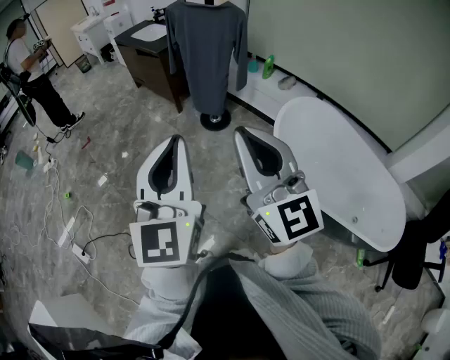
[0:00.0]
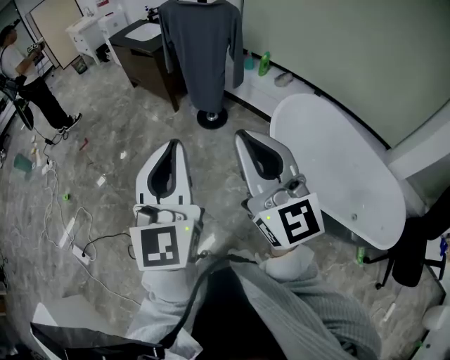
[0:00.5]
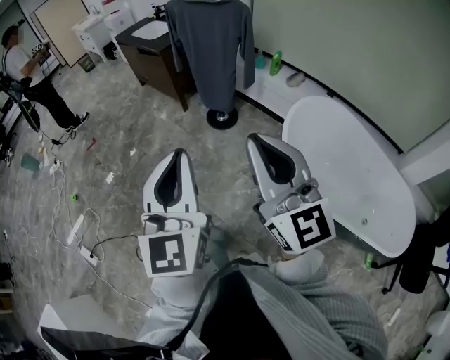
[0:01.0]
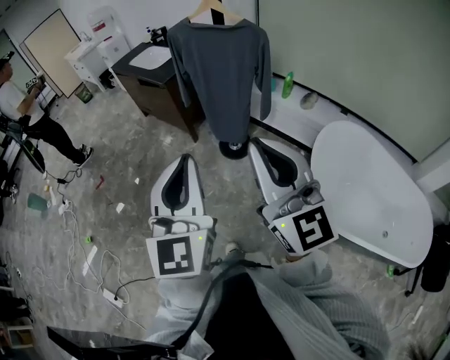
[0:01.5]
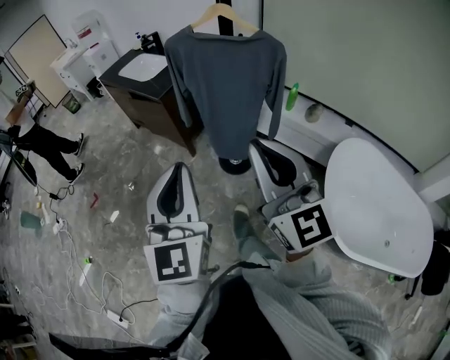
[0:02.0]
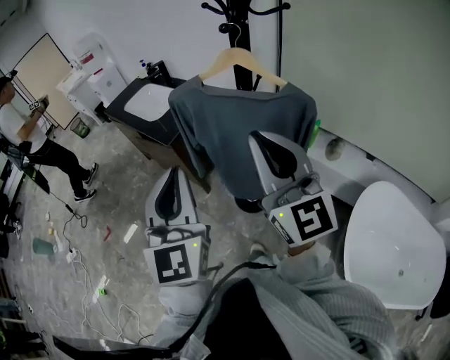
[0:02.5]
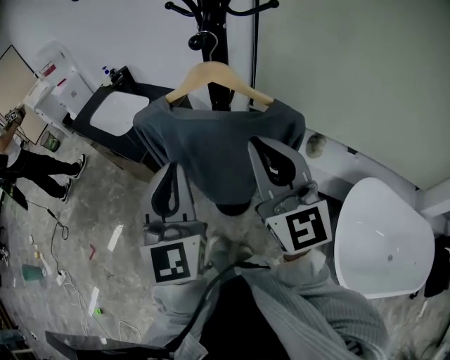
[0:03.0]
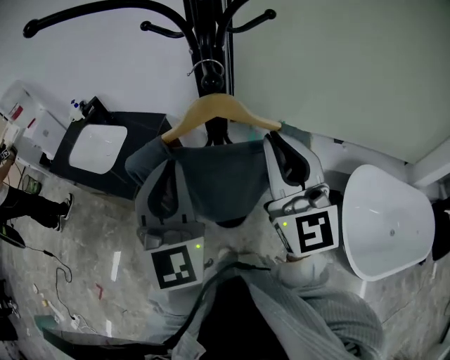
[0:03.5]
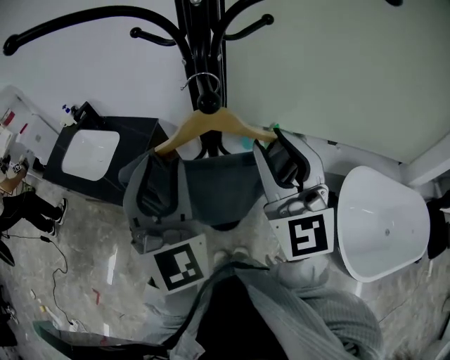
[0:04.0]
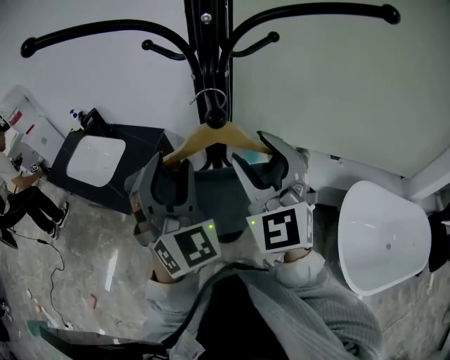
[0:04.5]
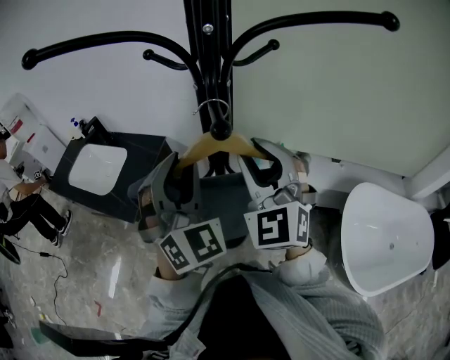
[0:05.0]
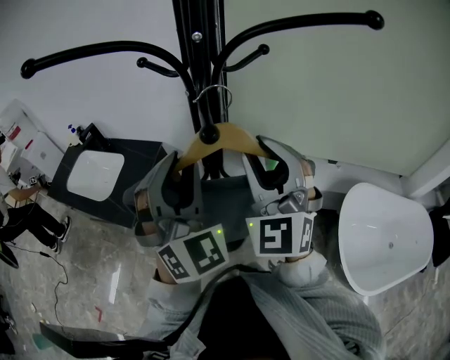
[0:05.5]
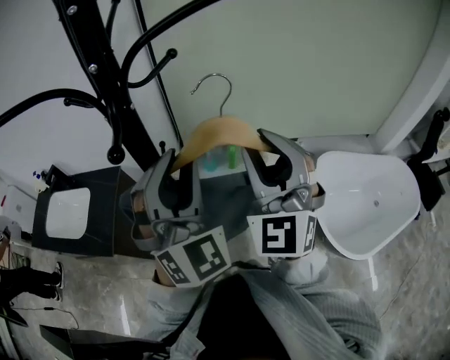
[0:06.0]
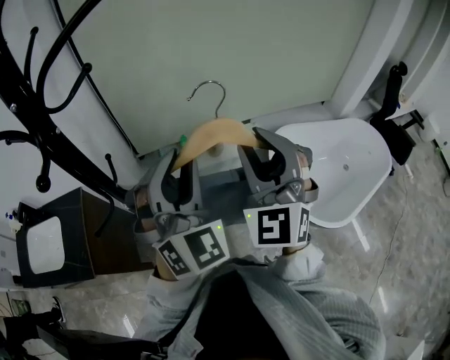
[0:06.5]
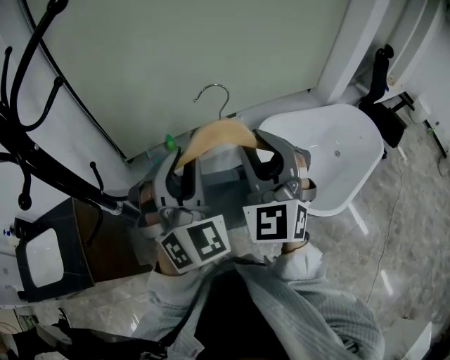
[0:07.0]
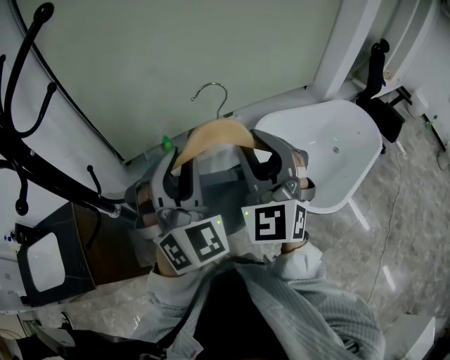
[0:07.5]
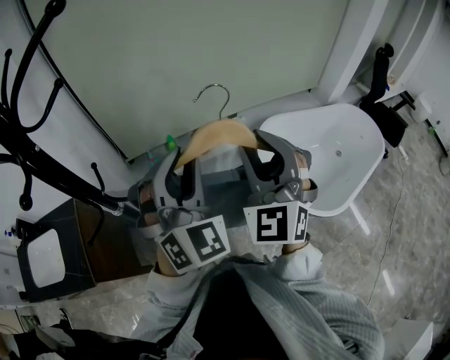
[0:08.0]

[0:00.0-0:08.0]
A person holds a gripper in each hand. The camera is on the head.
0:00.0 to 0:02.0: The two grippers travel together, forward, about 50 cm.
0:02.0 to 0:04.0: The two grippers travel together, forward, about 50 cm. The left gripper swivels some 30 degrees, and opens up; the right gripper rotates some 30 degrees, and opens.
0:04.0 to 0:06.0: The two grippers go roughly 15 cm to the right. The right gripper turns by some 30 degrees, and opens, then closes again. Meanwhile the left gripper changes its angle by roughly 20 degrees.
0:06.0 to 0:08.0: The grippers both shift to the right by about 15 cm. The right gripper changes its angle by about 20 degrees, while the left gripper swivels roughly 20 degrees.

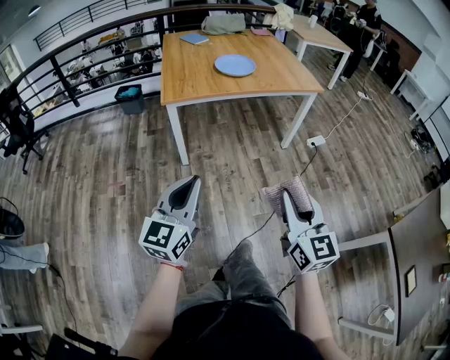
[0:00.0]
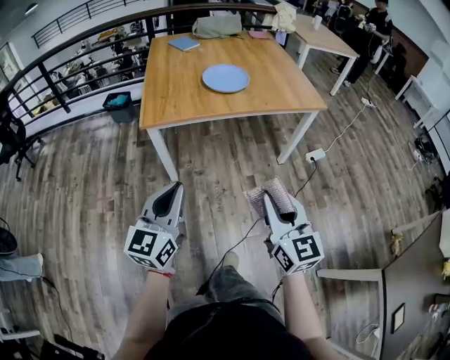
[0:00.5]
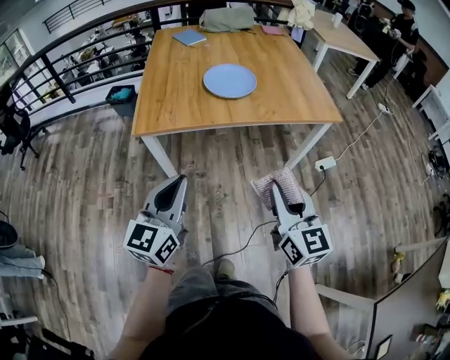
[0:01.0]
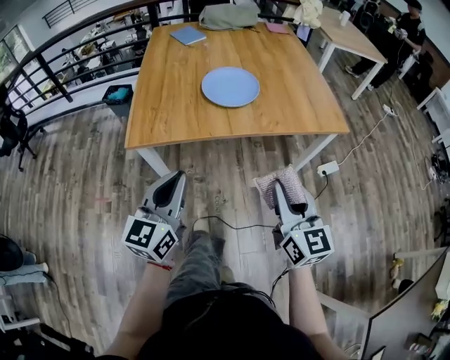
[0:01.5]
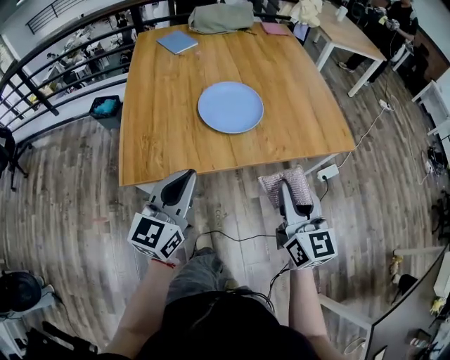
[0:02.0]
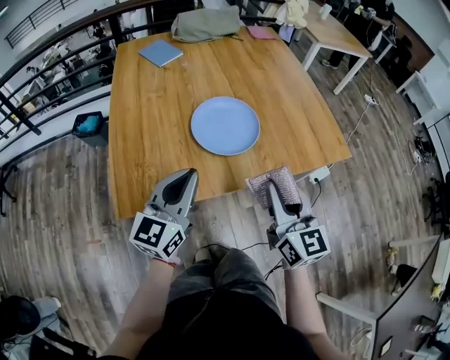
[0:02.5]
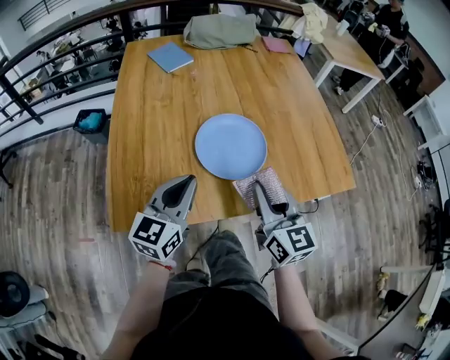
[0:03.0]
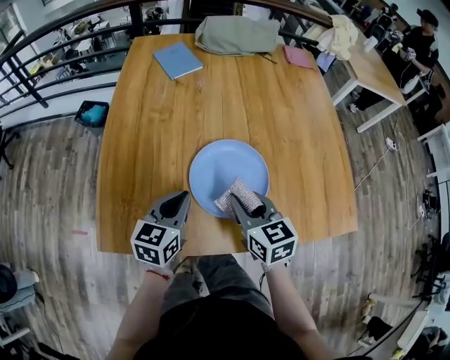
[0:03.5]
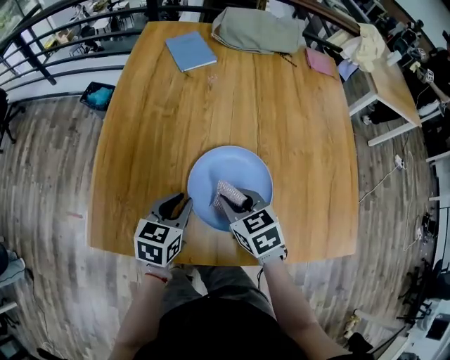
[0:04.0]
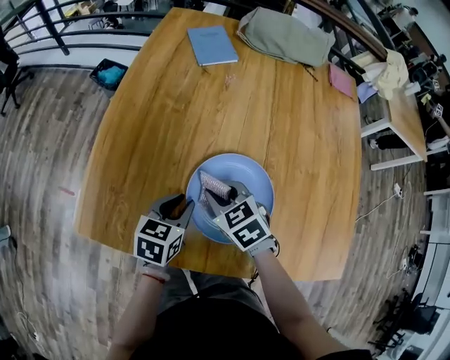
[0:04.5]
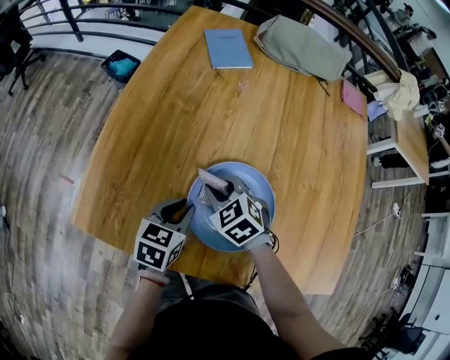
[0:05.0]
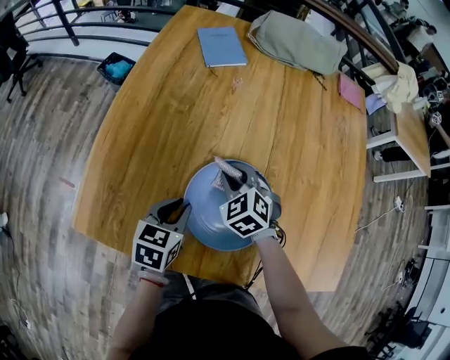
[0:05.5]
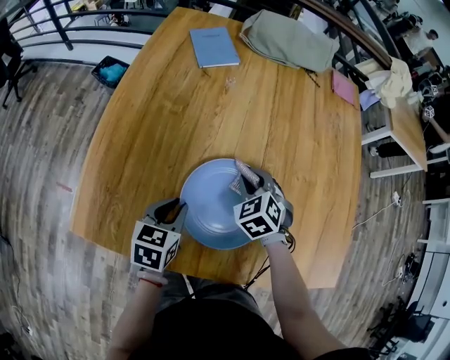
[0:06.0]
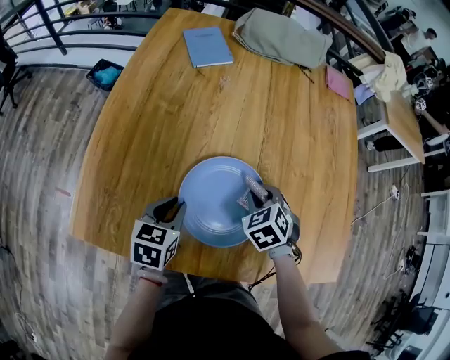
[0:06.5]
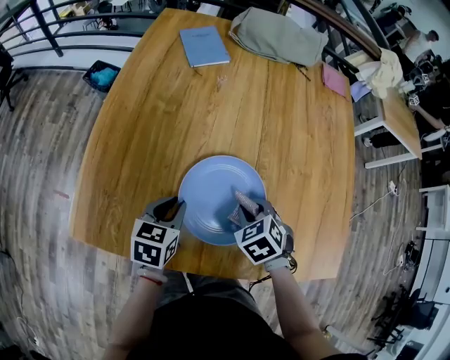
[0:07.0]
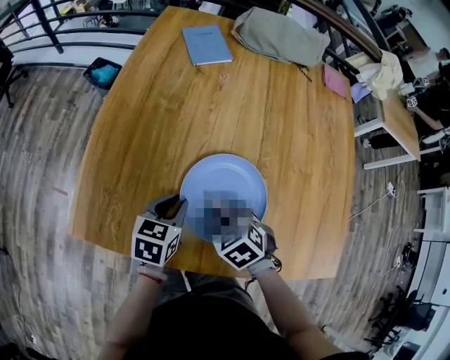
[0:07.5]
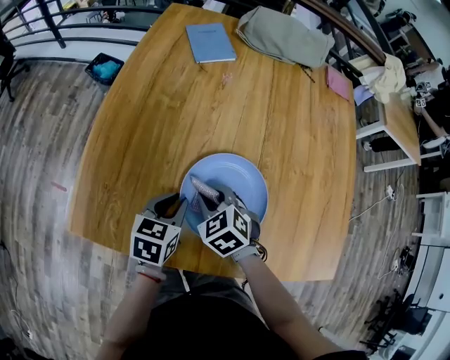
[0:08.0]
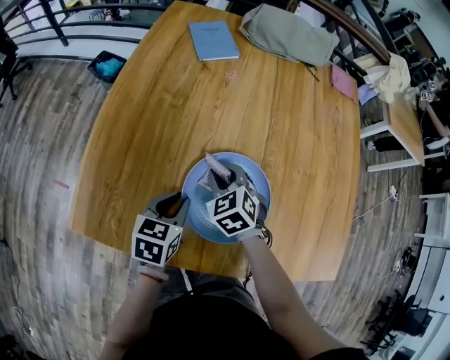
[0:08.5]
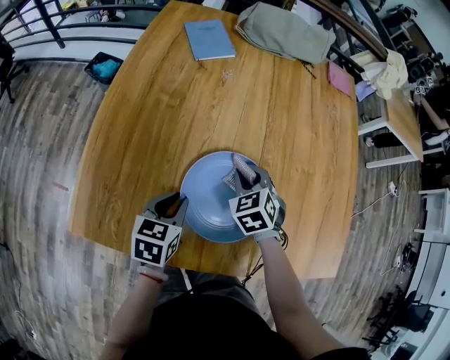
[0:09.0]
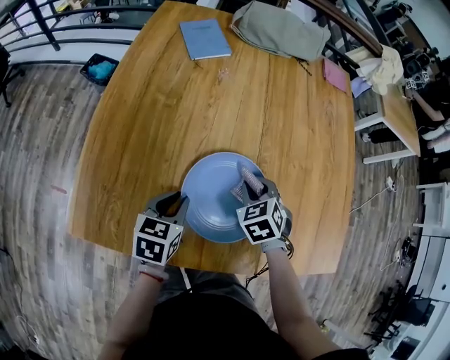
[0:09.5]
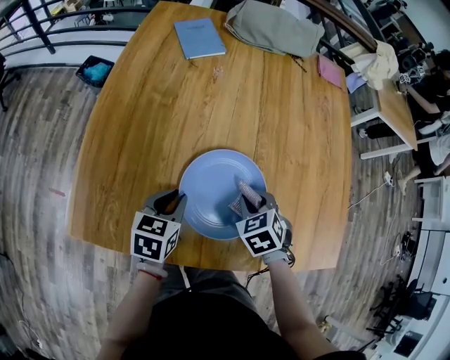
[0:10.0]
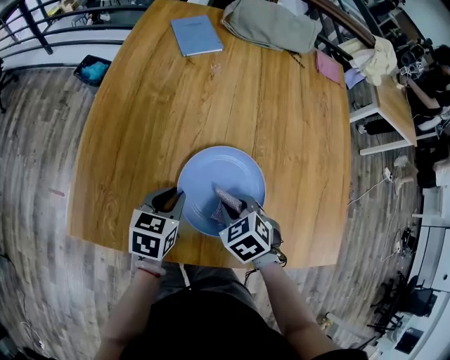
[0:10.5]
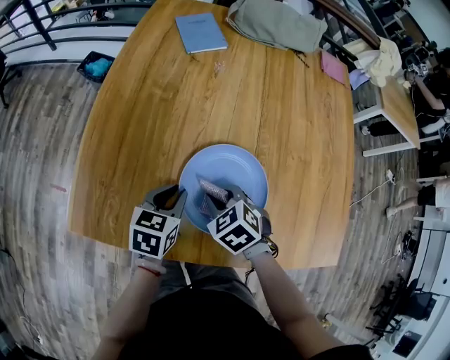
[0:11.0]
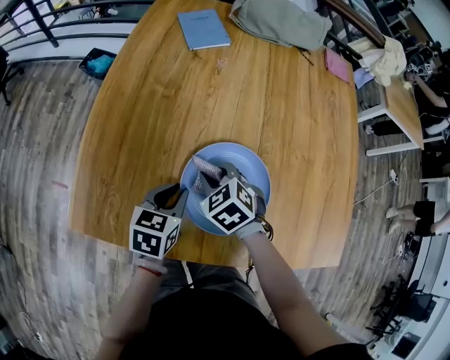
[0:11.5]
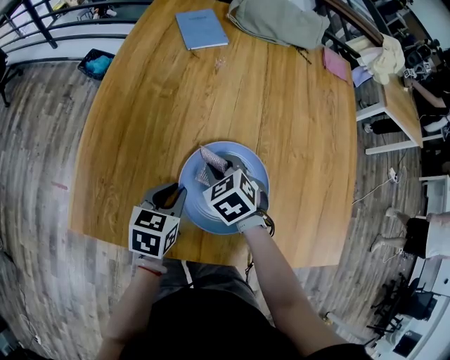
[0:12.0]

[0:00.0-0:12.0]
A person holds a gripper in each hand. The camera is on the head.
0:00.0 to 0:02.0: The two grippers travel together, forward, about 50 cm.
0:02.0 to 0:04.0: The left gripper changes place by some 30 cm, and tilts its fingers approximately 30 degrees downward; the right gripper moves approximately 35 cm, and points its fingers approximately 40 degrees further downward.
0:04.0 to 0:06.0: The right gripper goes about 10 cm forward and to the right, and rotates approximately 30 degrees.
0:06.0 to 0:08.0: The right gripper heads to the left and backward, covering roughly 15 cm.
0:08.0 to 0:10.0: The right gripper shifts some 15 cm to the right, and changes its angle by some 20 degrees.
0:10.0 to 0:12.0: The right gripper goes about 10 cm to the left and forward.

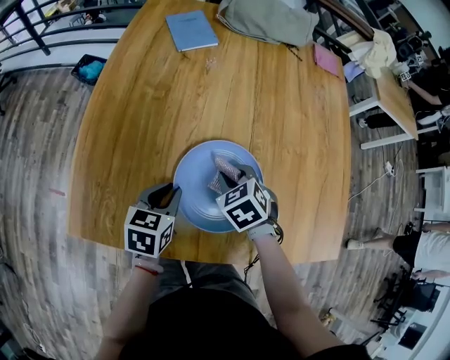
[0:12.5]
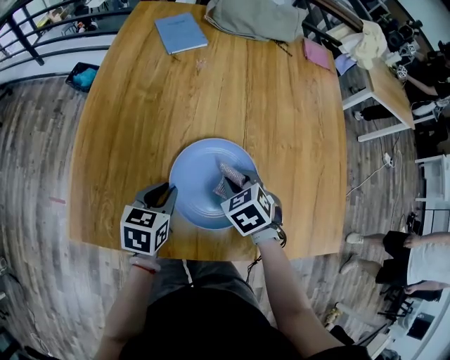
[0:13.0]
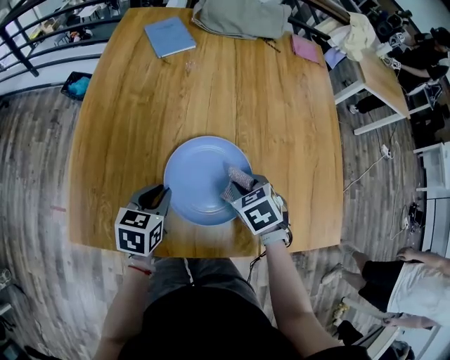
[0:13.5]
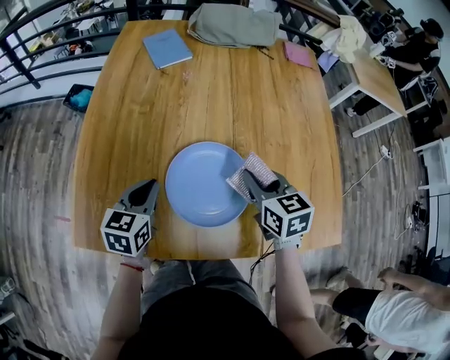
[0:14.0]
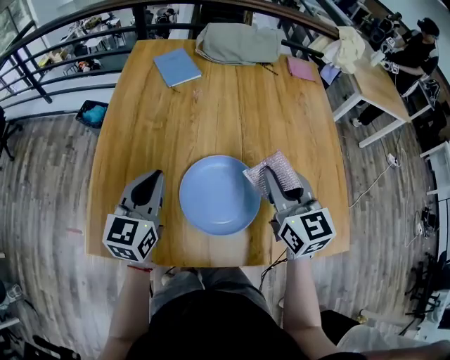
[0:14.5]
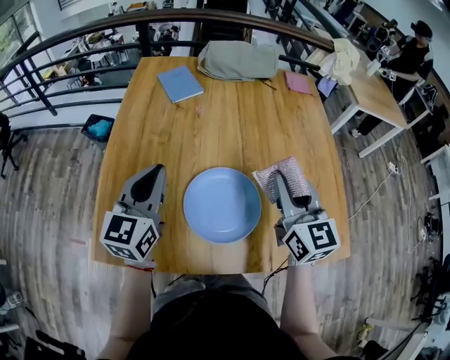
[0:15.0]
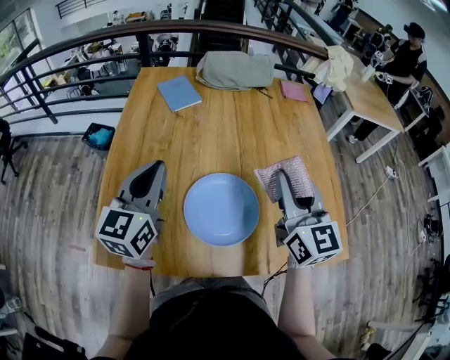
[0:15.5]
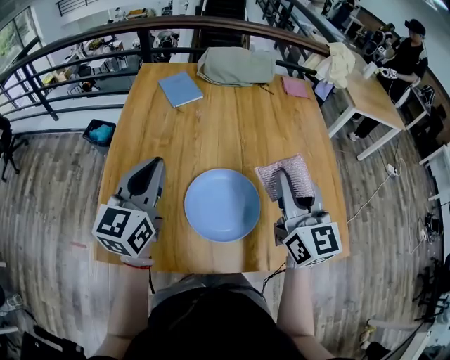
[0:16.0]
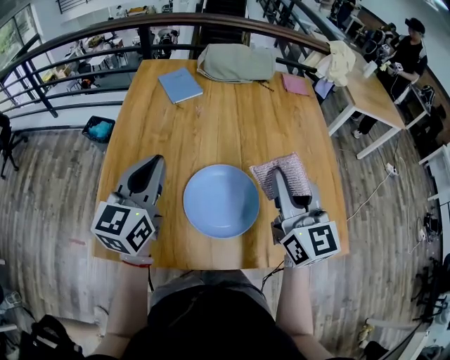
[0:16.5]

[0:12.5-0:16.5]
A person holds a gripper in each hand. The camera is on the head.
0:12.5 to 0:14.5: The right gripper is displaced upward and to the right by roughly 25 cm, and points its fingers roughly 50 degrees further upward. The left gripper heads upward, covering approximately 15 cm, and rotates about 30 degrees.
0:14.5 to 0:16.5: Both grippers travel together upward, some 10 cm.

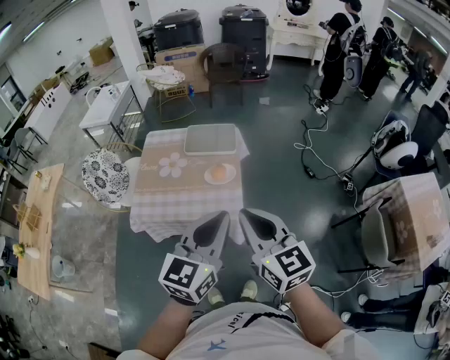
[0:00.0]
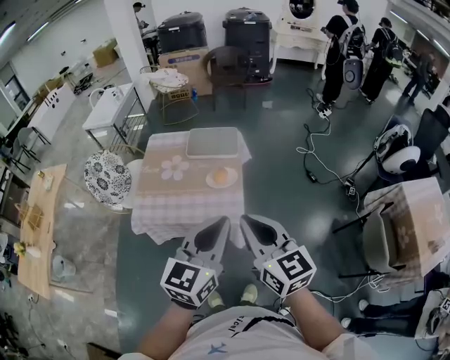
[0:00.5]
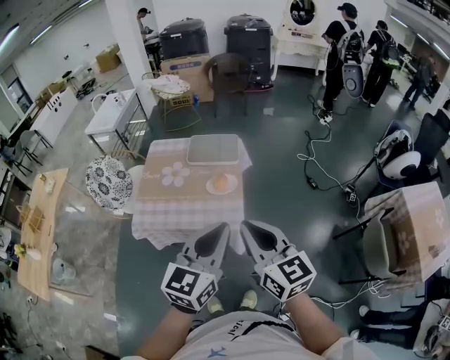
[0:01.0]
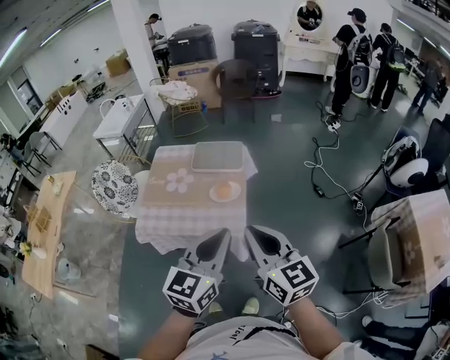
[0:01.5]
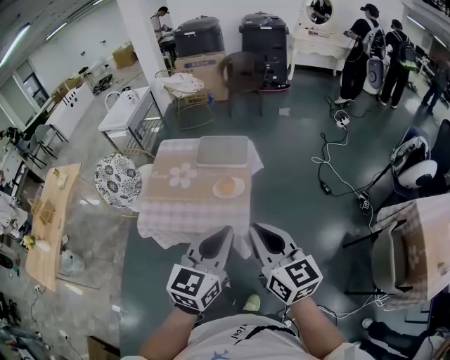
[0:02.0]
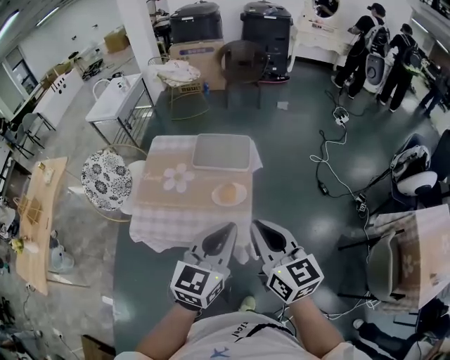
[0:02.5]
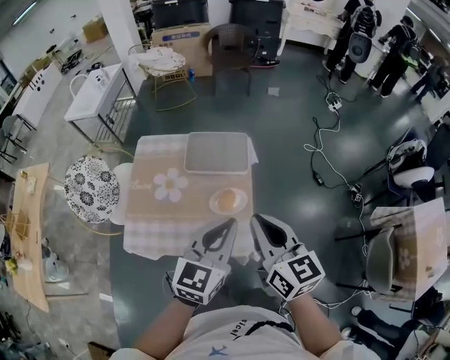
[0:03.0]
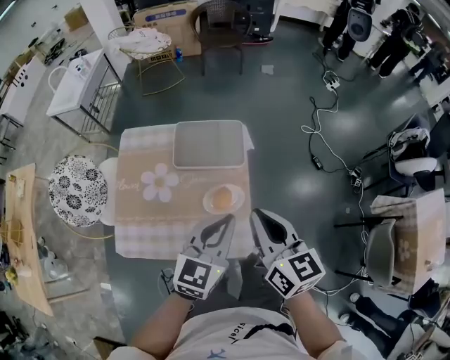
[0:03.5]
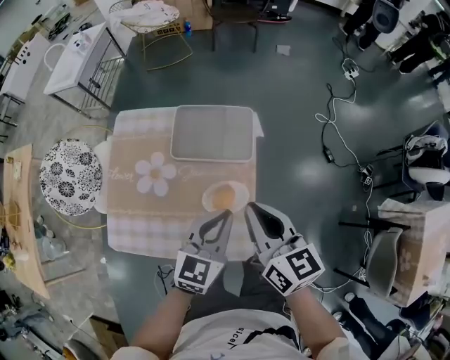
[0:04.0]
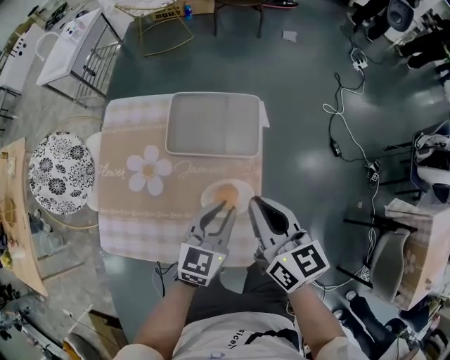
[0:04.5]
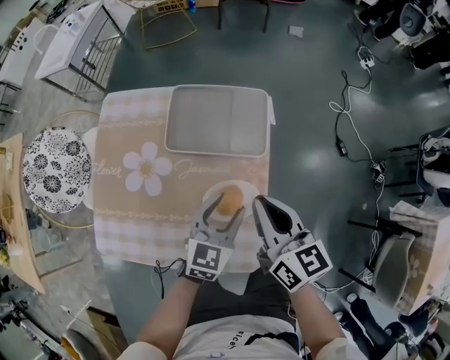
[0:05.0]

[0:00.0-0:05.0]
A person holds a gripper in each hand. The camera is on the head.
0:00.0 to 0:02.5: The right gripper moves forward, some 15 cm. The left gripper heads forward and downward, covering approximately 15 cm.
0:02.5 to 0:05.0: The left gripper heads downward and forward, covering about 40 cm, and opens up; the right gripper heads forward and downward, covering roughly 35 cm.
